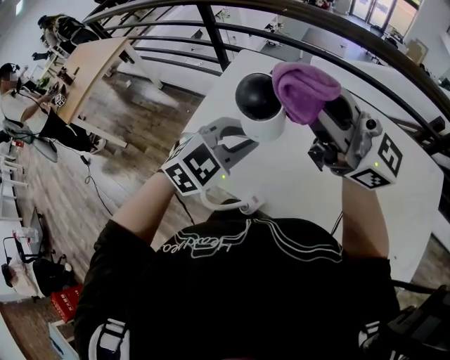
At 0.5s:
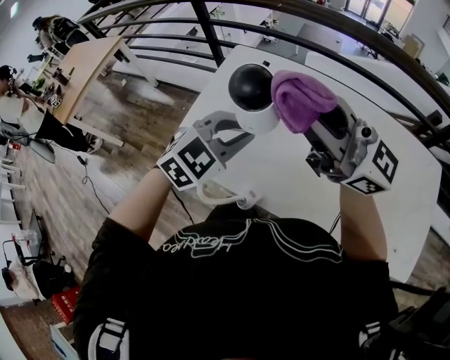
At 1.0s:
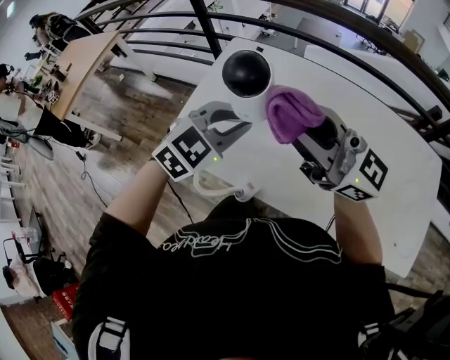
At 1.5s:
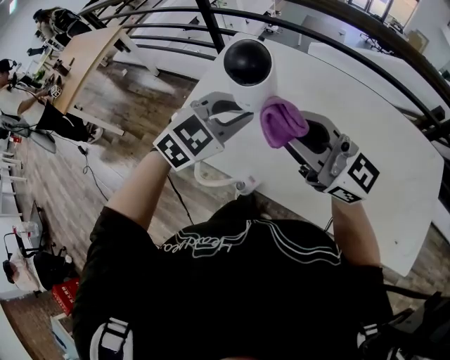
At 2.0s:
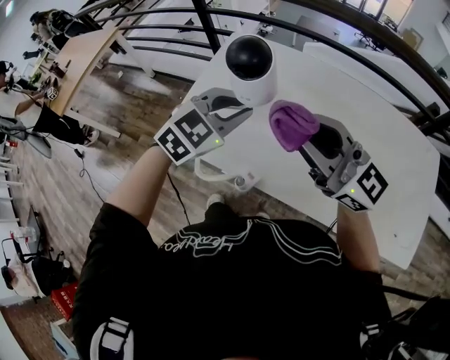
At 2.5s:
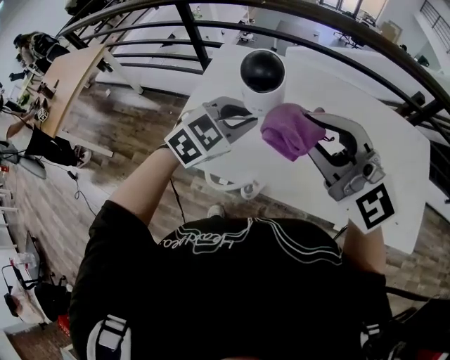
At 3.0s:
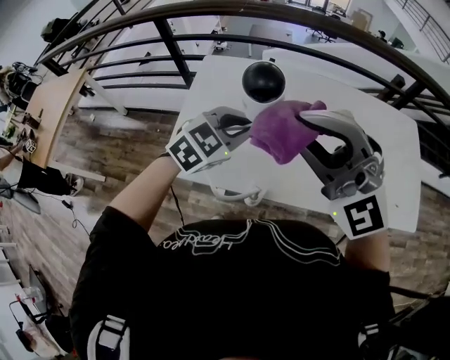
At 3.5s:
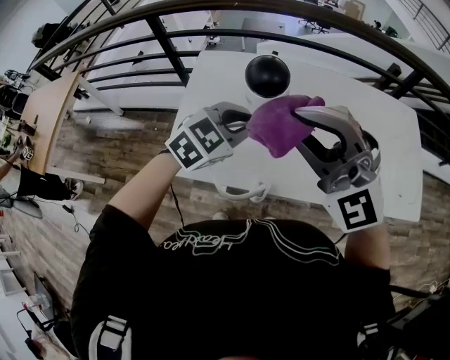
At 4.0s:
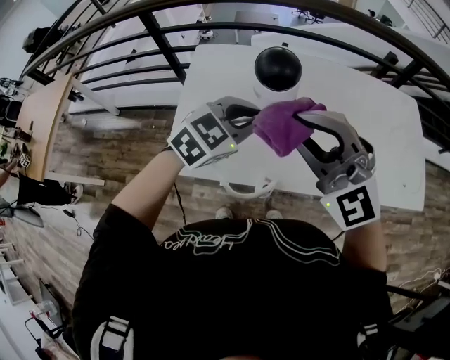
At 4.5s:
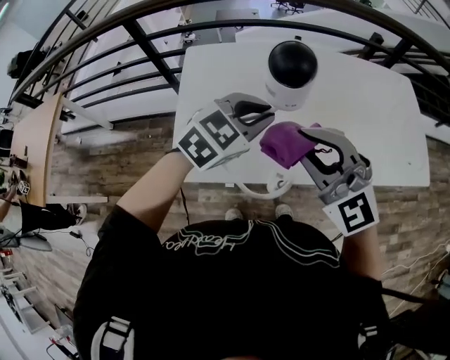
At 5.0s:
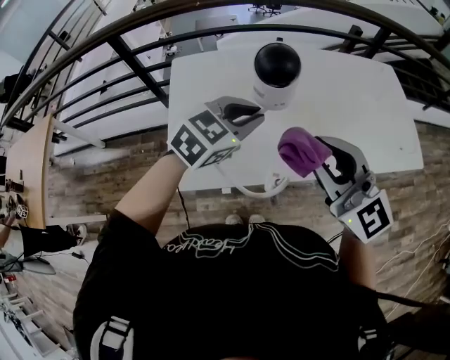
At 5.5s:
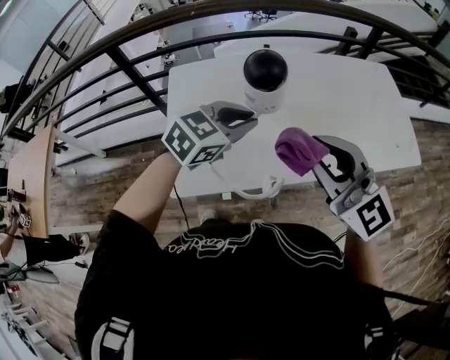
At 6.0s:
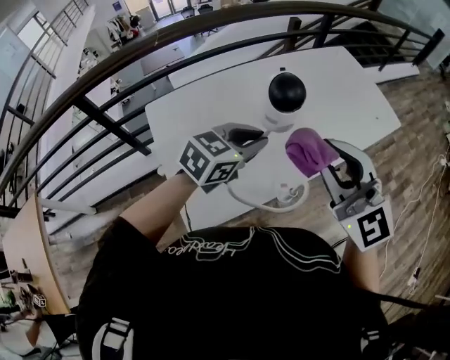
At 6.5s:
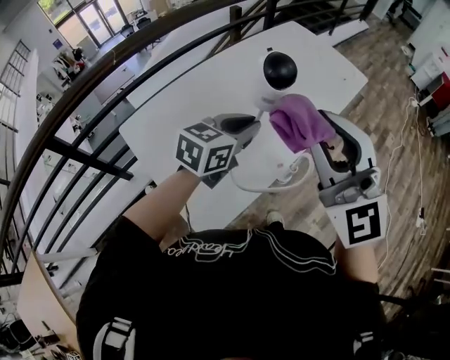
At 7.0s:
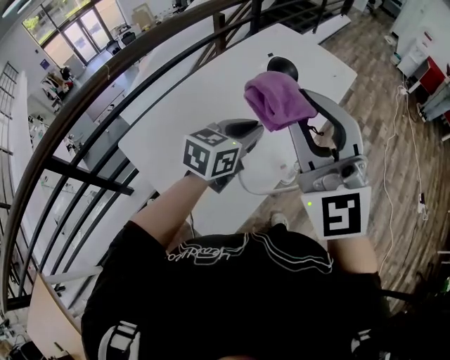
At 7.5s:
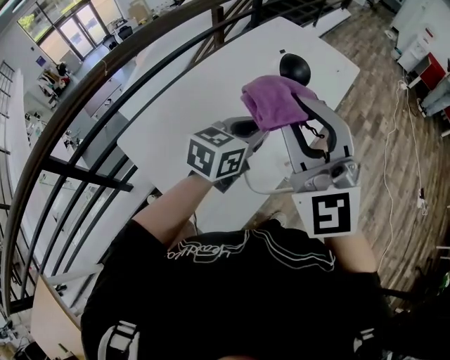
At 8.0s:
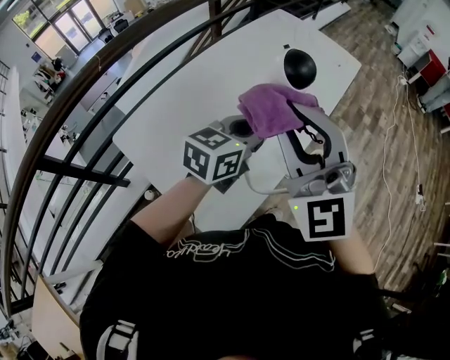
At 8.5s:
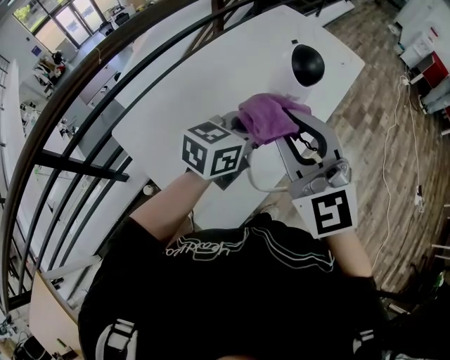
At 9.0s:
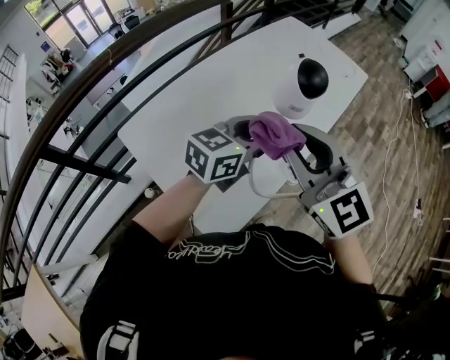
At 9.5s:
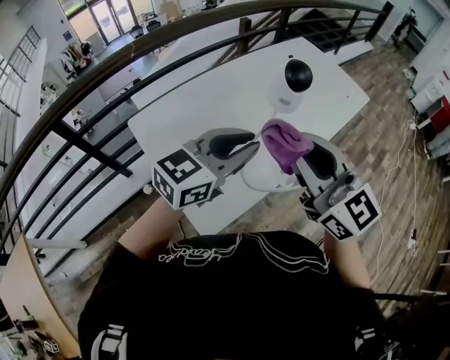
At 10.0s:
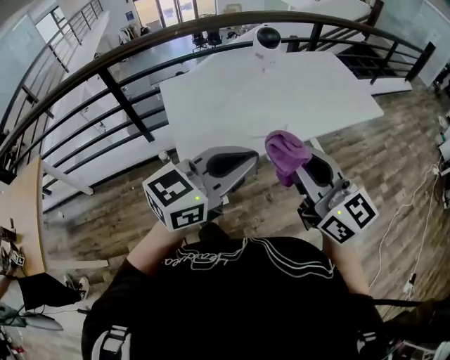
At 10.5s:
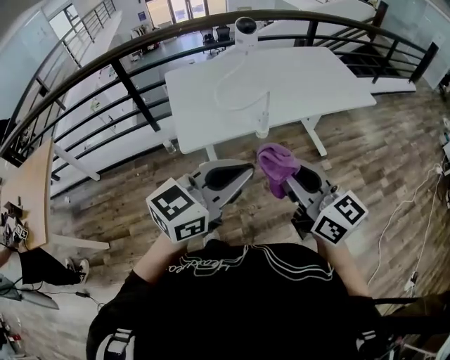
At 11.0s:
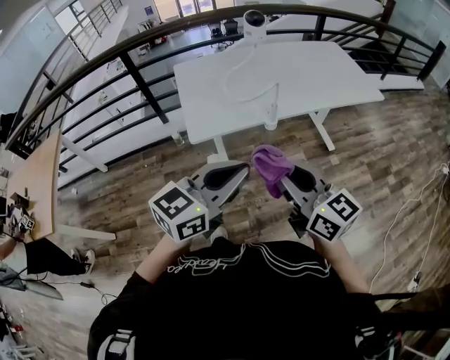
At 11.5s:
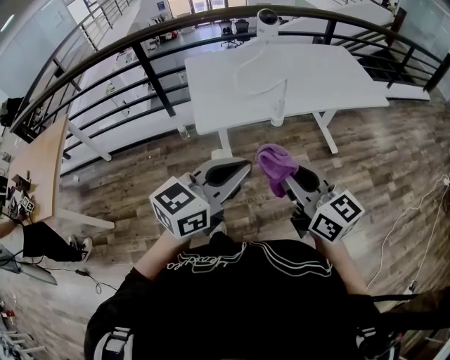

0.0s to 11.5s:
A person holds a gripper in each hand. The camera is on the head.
0.0s to 2.0s: The right gripper is displaced downward and backward by about 15 cm.
2.0s to 4.0s: The left gripper rotates some 20 degrees. The right gripper ends up approximately 10 cm from where it was, and changes its angle by about 60 degrees.
4.0s to 6.0s: The right gripper changes its angle by roughly 50 degrees, while the left gripper rotates about 30 degrees.
6.0s to 7.5s: The right gripper goes approximately 10 cm to the left and upward, and changes its angle by about 40 degrees.
7.5s to 9.5s: The left gripper goes approximately 10 cm backward and upward. The right gripper moves roughly 10 cm, and changes its angle by roughly 40 degrees.
9.5s to 11.5s: The left gripper ends up roughly 40 cm from where it was, and changes its angle by roughly 30 degrees; the right gripper moves roughly 40 cm, and swivels roughly 30 degrees.

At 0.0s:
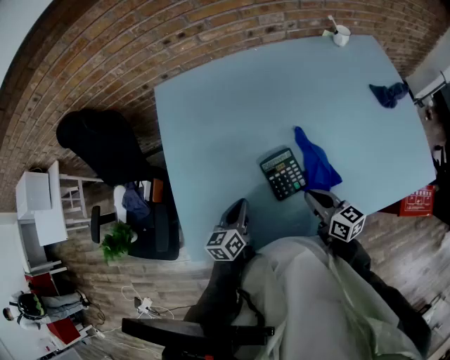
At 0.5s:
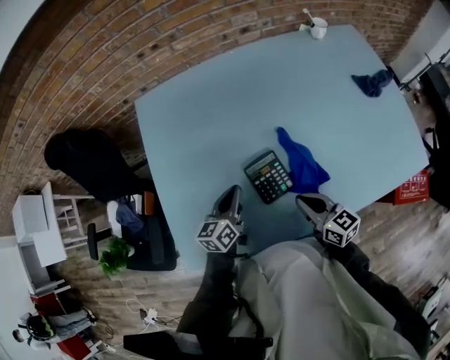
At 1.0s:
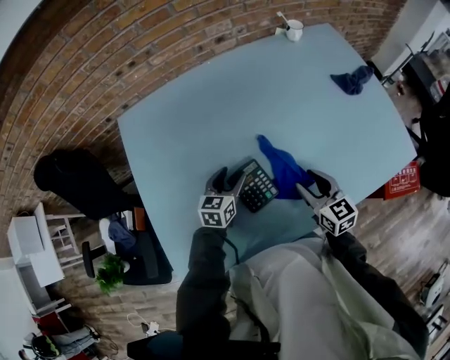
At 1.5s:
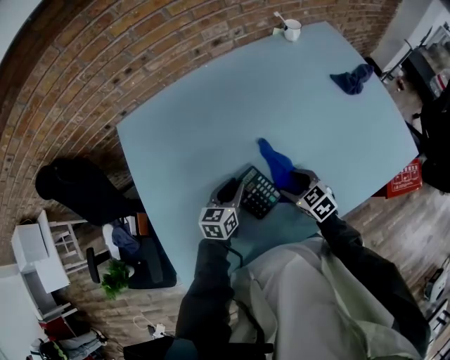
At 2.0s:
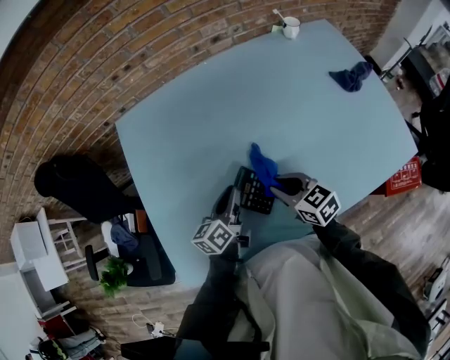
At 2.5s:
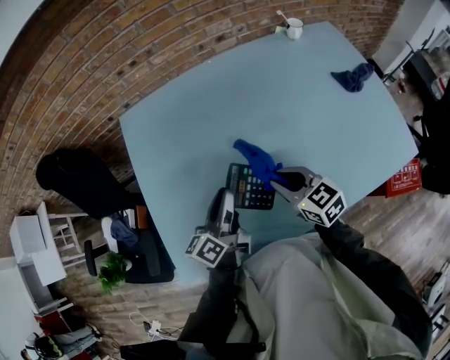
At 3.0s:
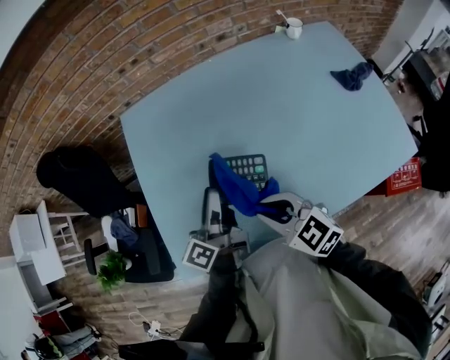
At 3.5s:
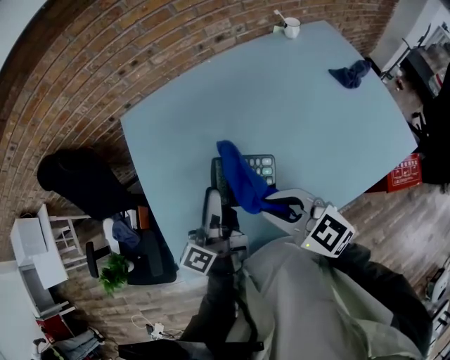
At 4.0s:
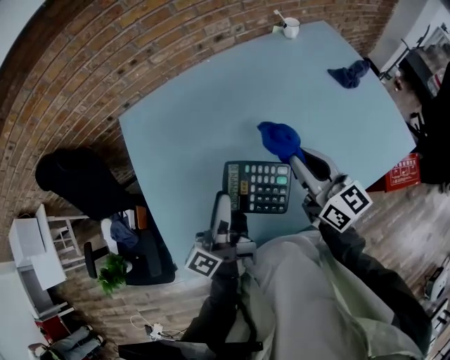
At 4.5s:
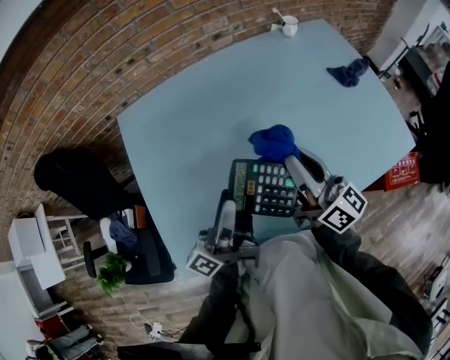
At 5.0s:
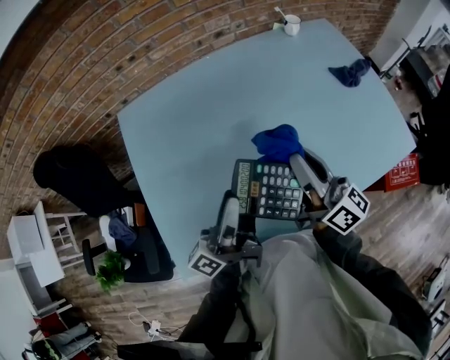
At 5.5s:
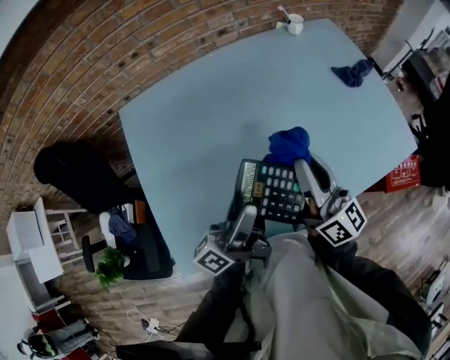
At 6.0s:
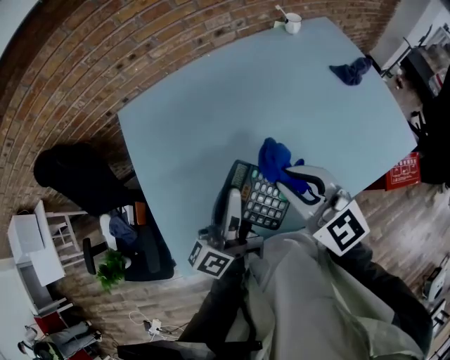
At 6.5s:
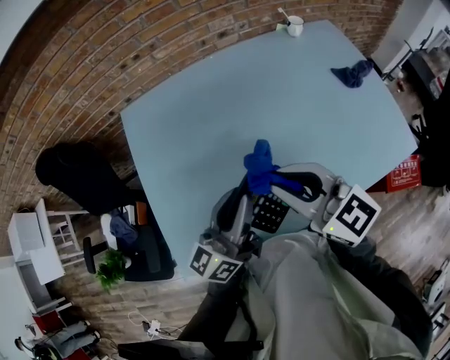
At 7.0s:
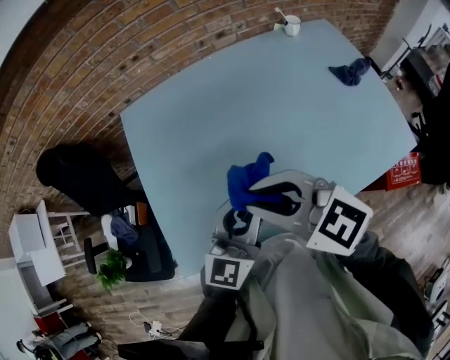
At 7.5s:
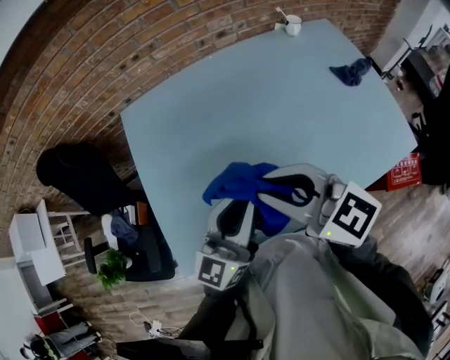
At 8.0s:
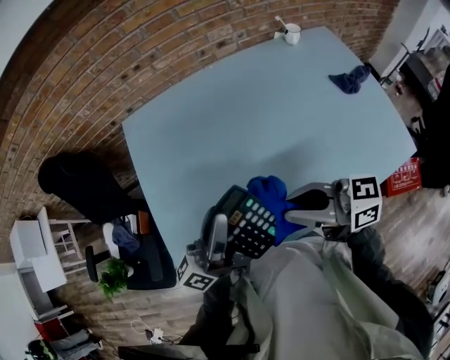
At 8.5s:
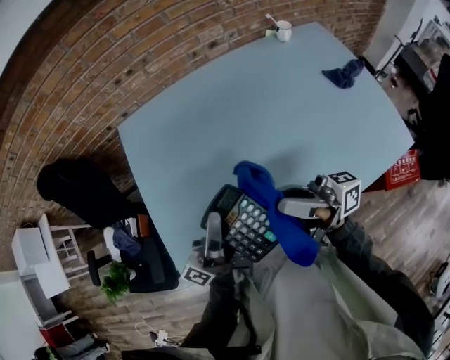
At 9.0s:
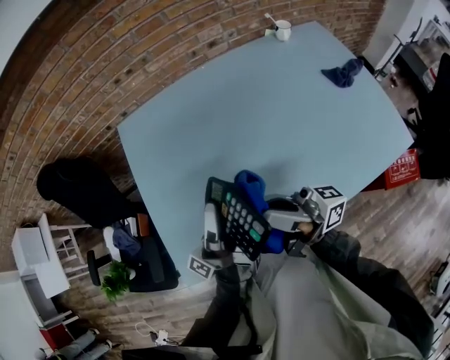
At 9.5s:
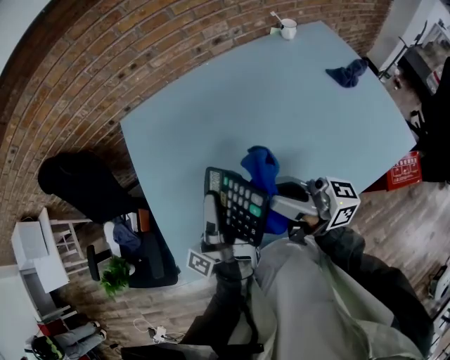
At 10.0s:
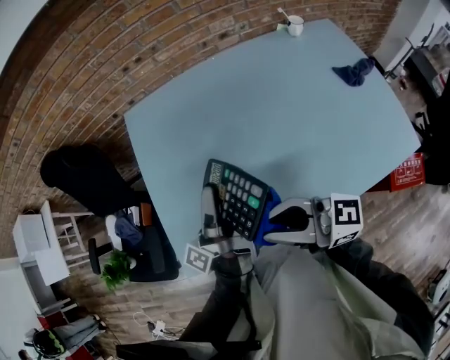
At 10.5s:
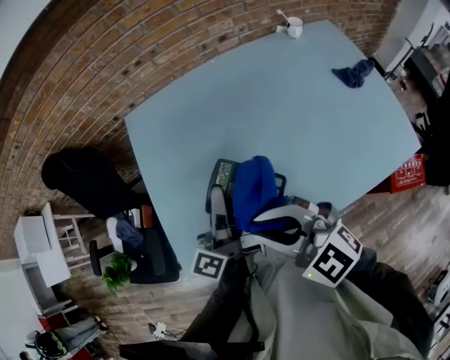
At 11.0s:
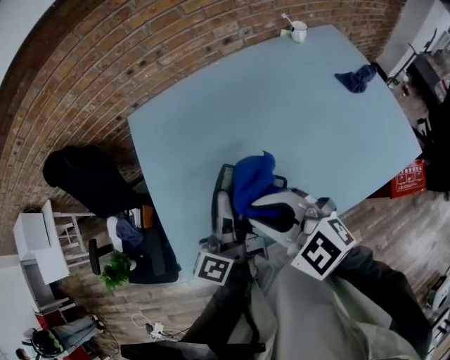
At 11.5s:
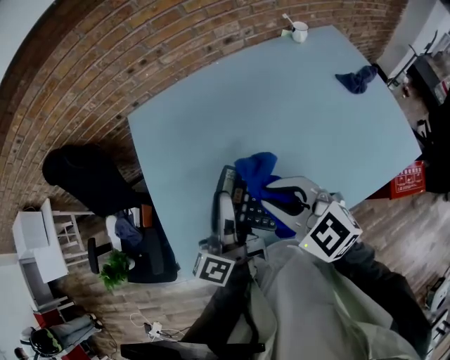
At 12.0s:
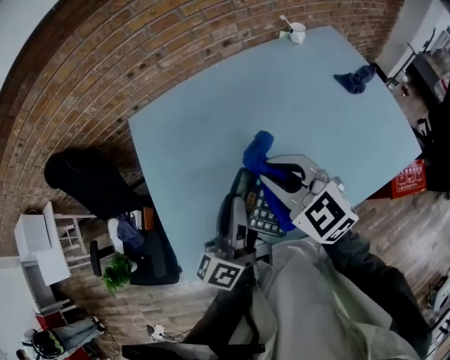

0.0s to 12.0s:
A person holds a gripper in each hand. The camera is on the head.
0.0s to 2.0s: The right gripper is displaced forward by about 5 cm, moves roughly 10 cm to the right and comes back, turns by approximately 20 degrees, and opens and closes again. The left gripper goes some 10 cm to the right and forward, and opens, then closes once more.
2.0s to 4.0s: Both grippers travel together upward, roughly 15 cm. The right gripper swivels some 40 degrees. Meanwhile the left gripper points its fingers approximately 30 degrees further upward.
4.0s to 6.0s: The left gripper opens, then closes once more, while the right gripper travels to the left by about 5 cm, and turns by some 30 degrees.
6.0s to 8.0s: The right gripper moves approximately 10 cm to the left and comes back, and swivels approximately 50 degrees. The left gripper shifts by about 5 cm.
8.0s to 10.0s: The left gripper shifts by roughly 5 cm, and rotates roughly 40 degrees; the right gripper travels to the left by about 5 cm.
10.0s to 12.0s: The right gripper travels forward and to the right by about 10 cm, and tilts its fingers some 40 degrees downward, while the left gripper moves roughly 5 cm, and rolls clockwise, seen from behind, by about 40 degrees.

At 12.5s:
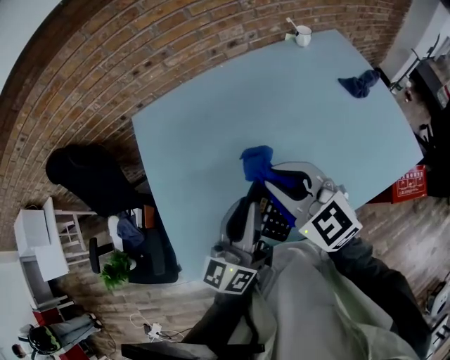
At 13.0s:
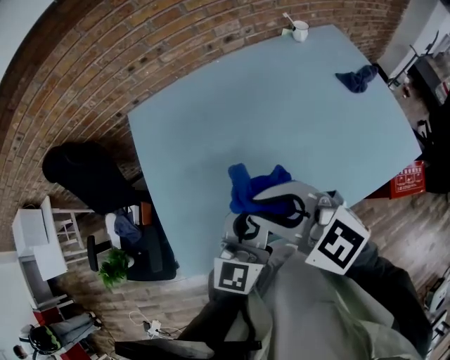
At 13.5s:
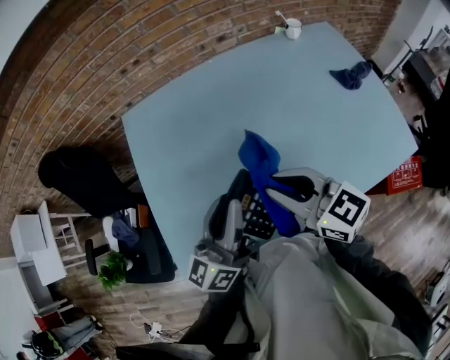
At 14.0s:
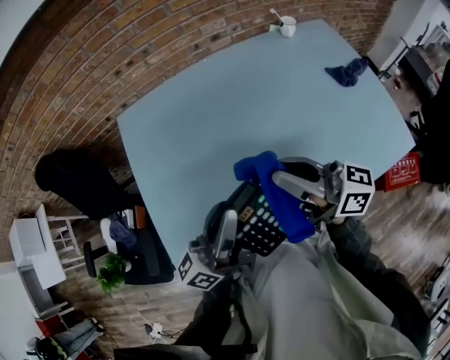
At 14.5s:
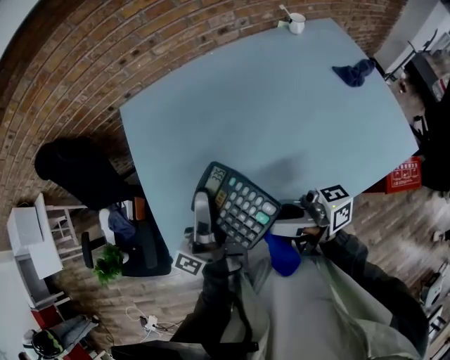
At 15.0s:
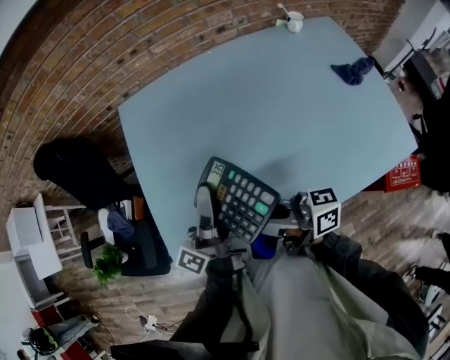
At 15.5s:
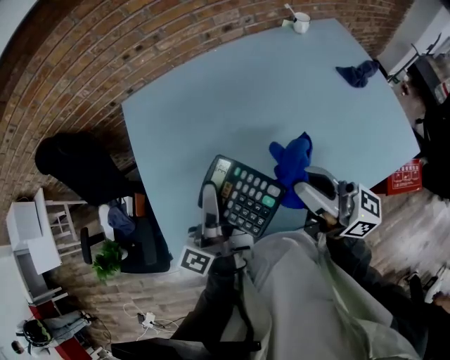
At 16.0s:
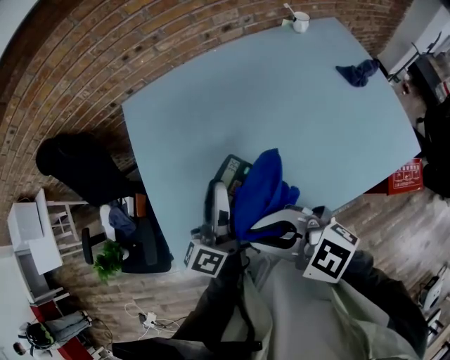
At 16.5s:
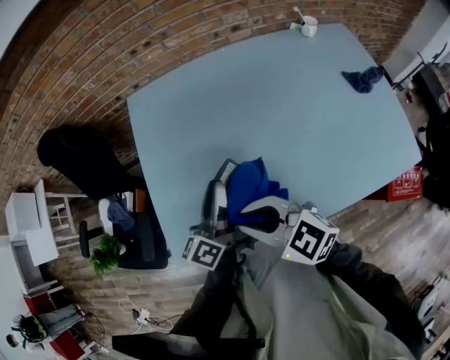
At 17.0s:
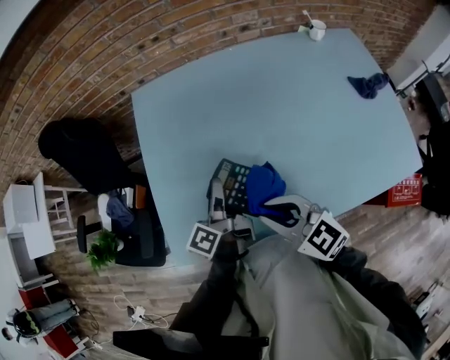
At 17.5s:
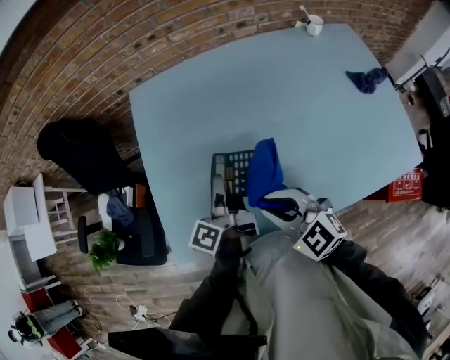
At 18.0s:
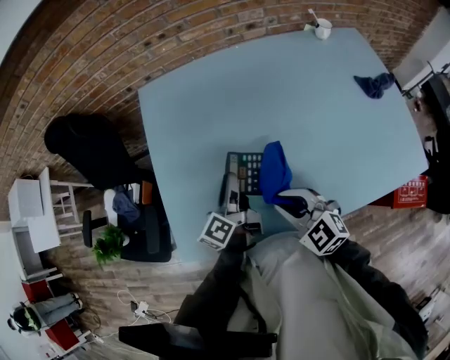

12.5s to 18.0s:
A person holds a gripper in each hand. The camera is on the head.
12.5s to 14.5s: The right gripper moves left and right over some 10 cm, changing direction 2 times, and tilts its fingers approximately 50 degrees upward. The left gripper shifts roughly 5 cm to the left, and rotates around the line of its fingers by about 40 degrees, counterclockwise from behind.
14.5s to 16.0s: The left gripper swivels roughly 30 degrees. The right gripper heads to the left, covering some 5 cm, and tips its fingers downward by about 50 degrees.
16.0s to 18.0s: The right gripper shifts approximately 15 cm downward and to the right. The left gripper shifts about 15 cm downward, and swivels about 20 degrees.
